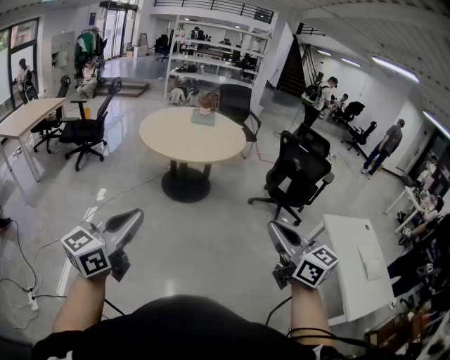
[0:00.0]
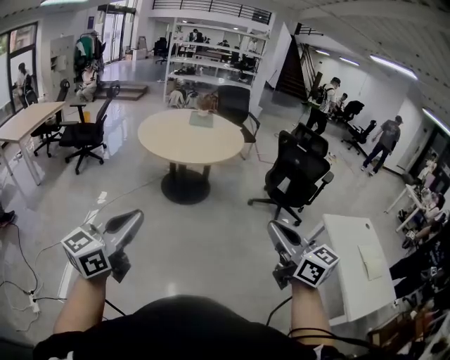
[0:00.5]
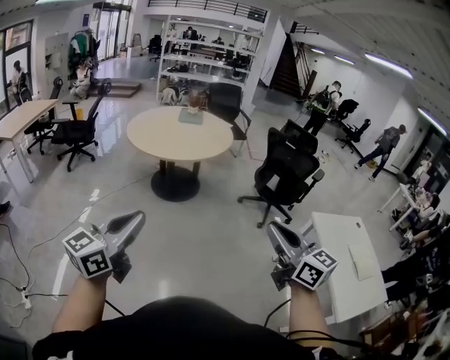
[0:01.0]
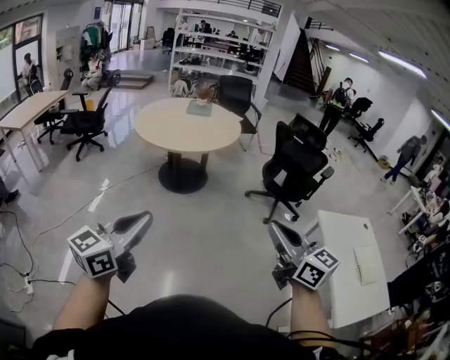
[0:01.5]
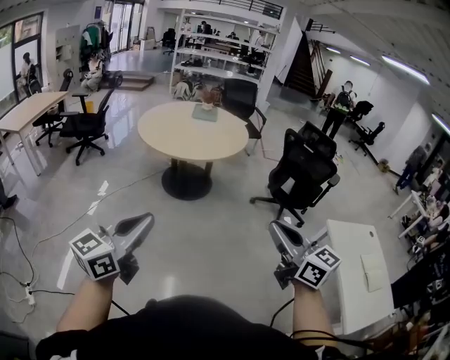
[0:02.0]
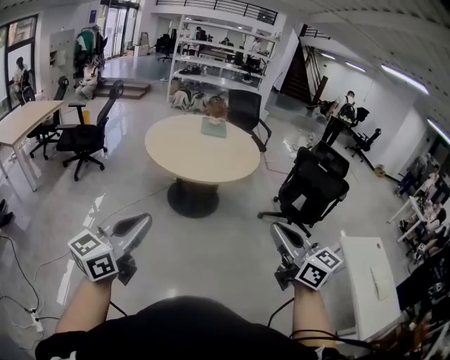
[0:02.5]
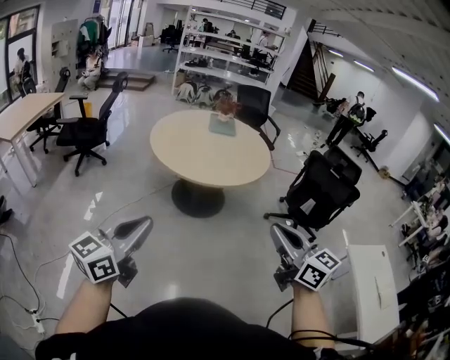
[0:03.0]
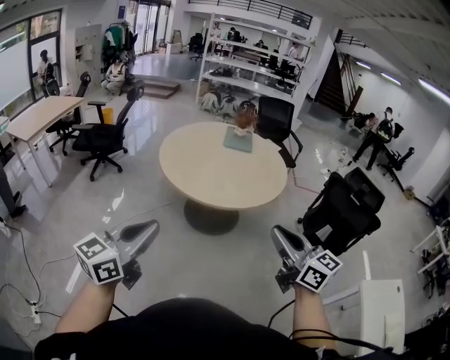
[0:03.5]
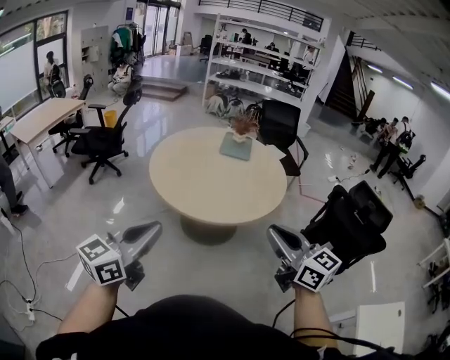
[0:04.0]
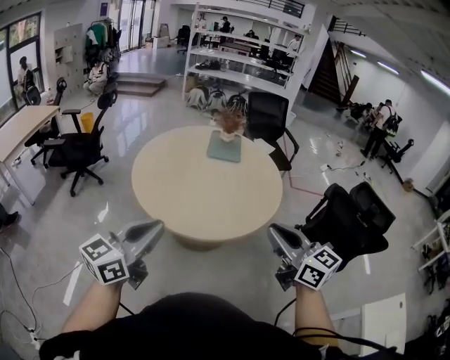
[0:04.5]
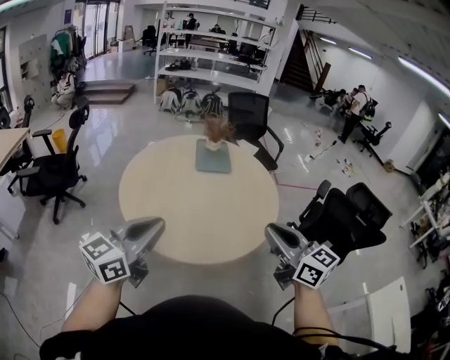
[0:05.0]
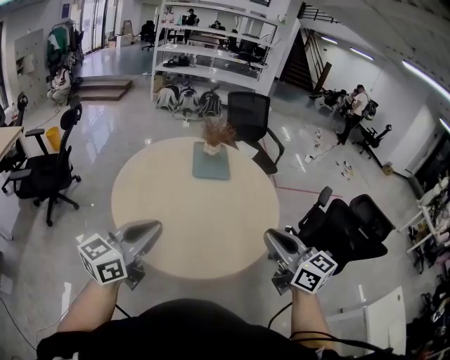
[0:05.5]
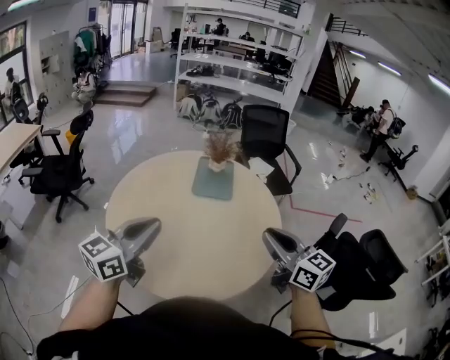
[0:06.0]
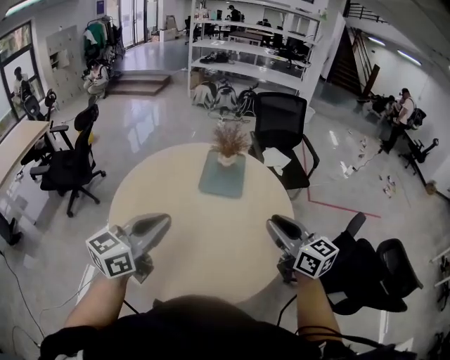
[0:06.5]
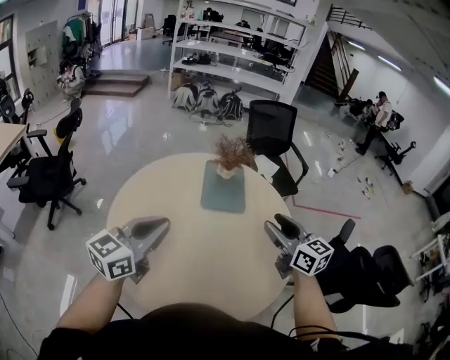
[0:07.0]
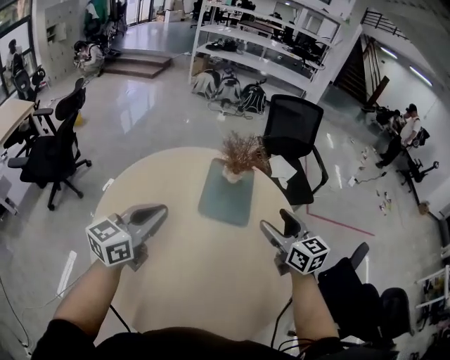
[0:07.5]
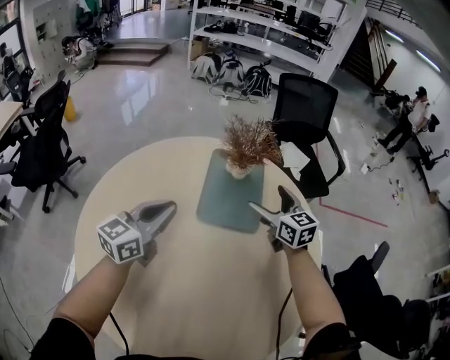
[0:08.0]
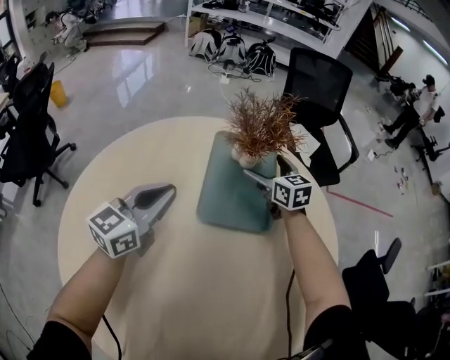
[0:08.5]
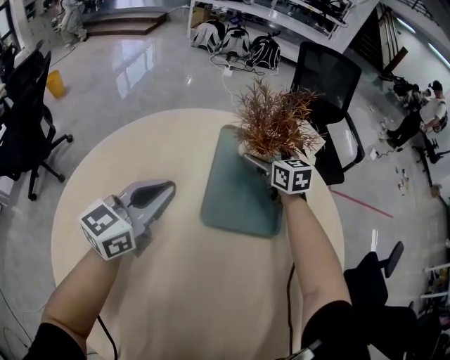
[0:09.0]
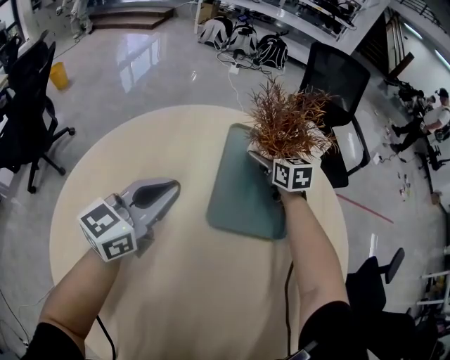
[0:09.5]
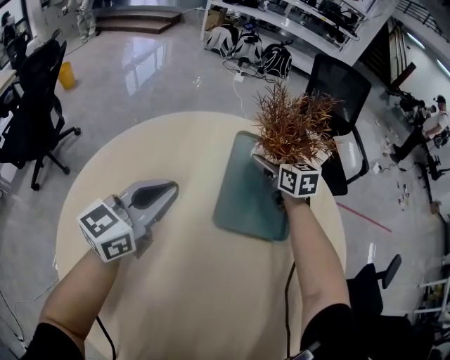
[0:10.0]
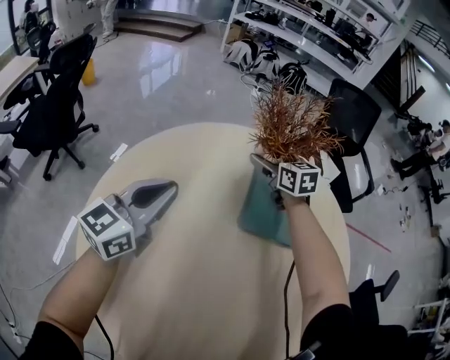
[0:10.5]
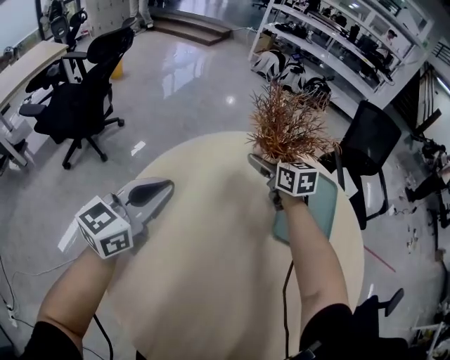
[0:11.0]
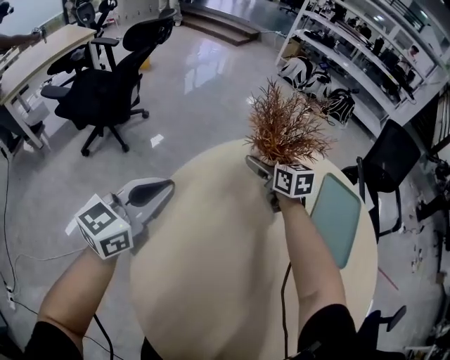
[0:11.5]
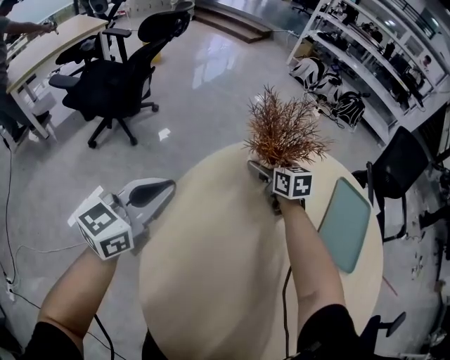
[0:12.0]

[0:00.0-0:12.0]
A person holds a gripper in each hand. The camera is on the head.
0:00.0 to 0:02.0: The right gripper heads forward, covering approximately 5 cm. Meanwhile the left gripper heads to the right, covering roughly 5 cm.
0:02.0 to 0:04.0: Both grippers are carried forward, roughly 40 cm.
0:04.0 to 0:06.0: Both grippers are carried forward, roughly 40 cm.
0:06.0 to 0:08.0: Both grippers travel together forward and downward, some 50 cm. The right gripper opens its fingers.
0:08.0 to 0:10.0: The left gripper goes some 10 cm forward, downward and to the left. The right gripper shifts about 20 cm forward, downward and to the left.
0:10.0 to 0:12.0: The grippers both shift to the left by approximately 35 cm. The left gripper swivels some 20 degrees. The right gripper swivels approximately 20 degrees.

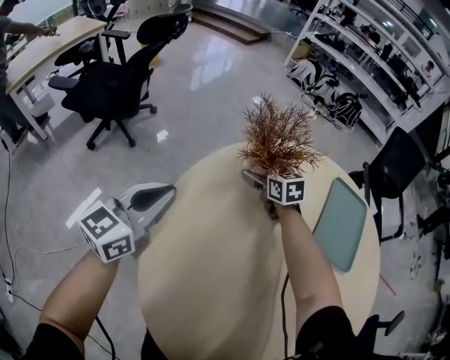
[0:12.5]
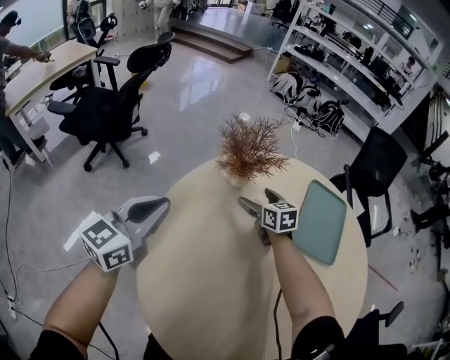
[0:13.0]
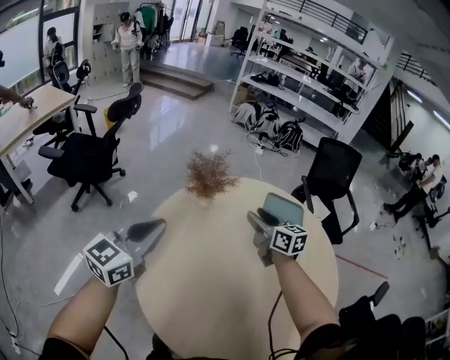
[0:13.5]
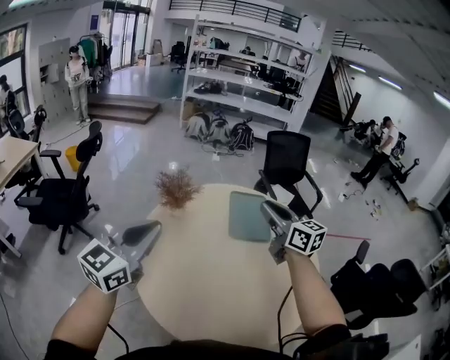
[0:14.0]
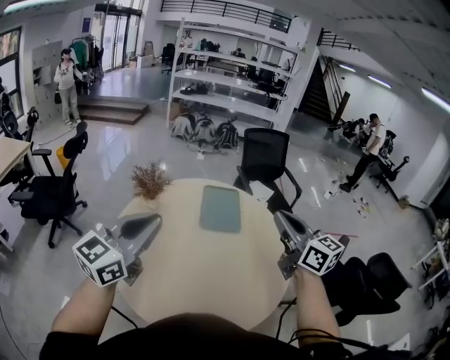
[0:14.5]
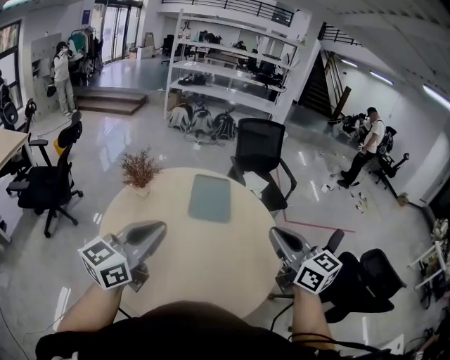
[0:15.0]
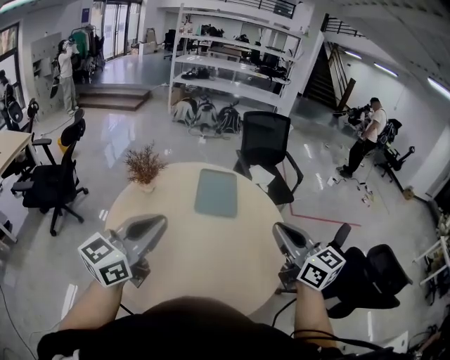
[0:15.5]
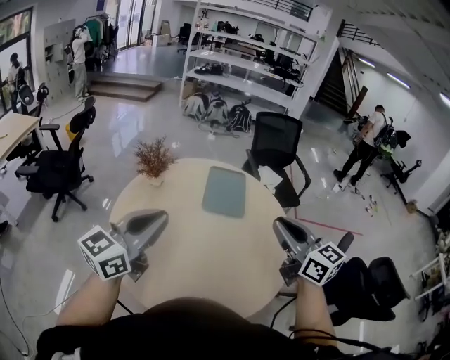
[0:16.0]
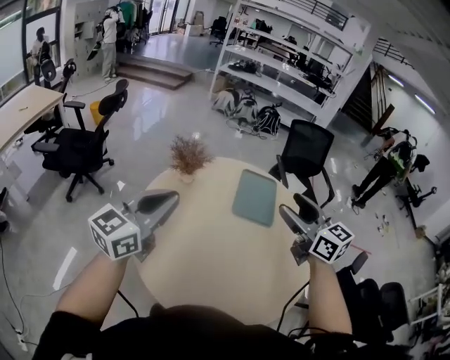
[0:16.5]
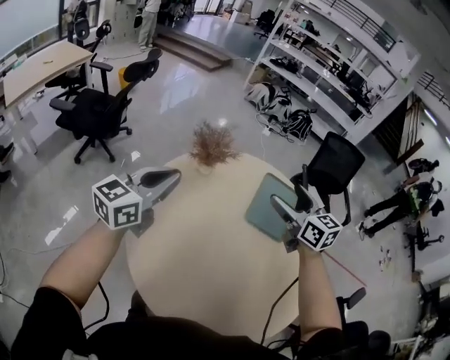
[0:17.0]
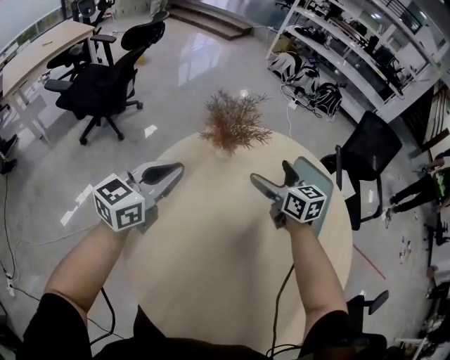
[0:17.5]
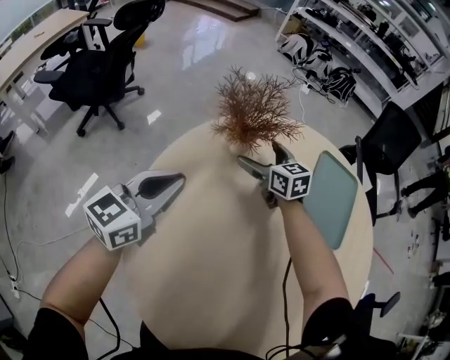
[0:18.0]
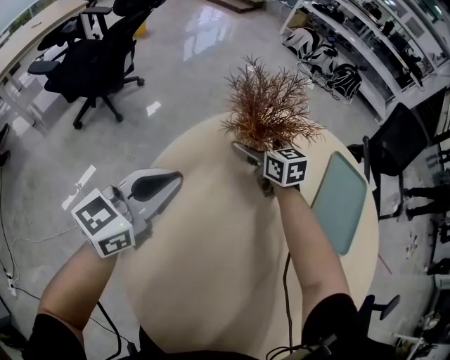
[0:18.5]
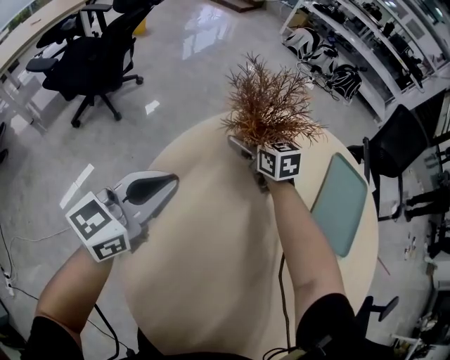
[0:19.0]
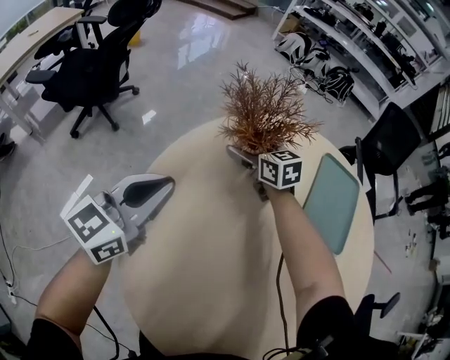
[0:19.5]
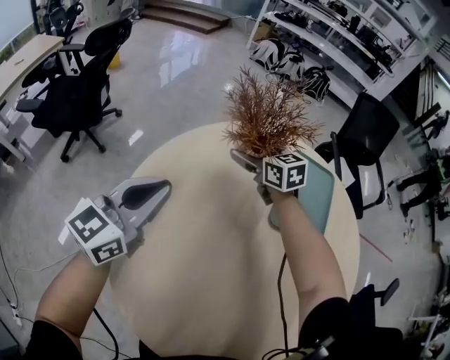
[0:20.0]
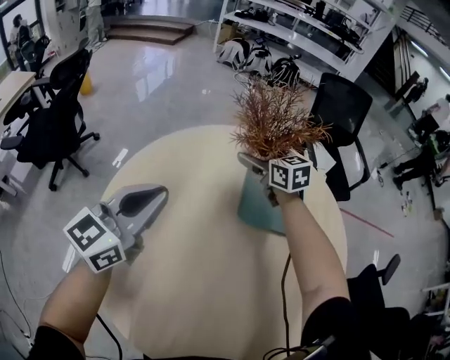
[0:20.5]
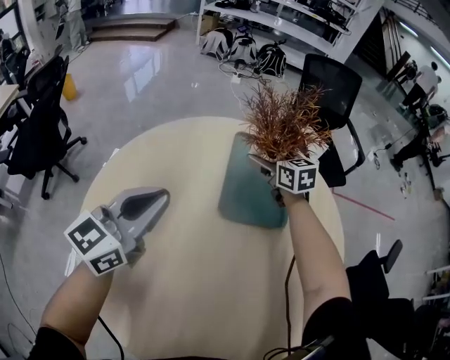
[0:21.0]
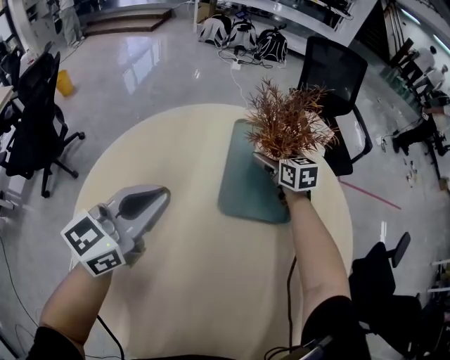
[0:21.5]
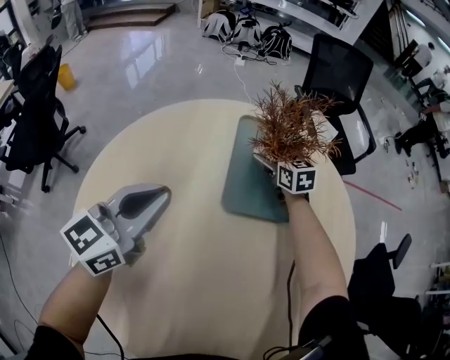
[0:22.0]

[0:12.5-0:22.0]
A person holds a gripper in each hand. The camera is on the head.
0:12.5 to 0:14.5: The left gripper moves upward, backward and to the right, some 50 cm, and changes its angle by roughly 30 degrees. The right gripper moves upward, backward and to the right, roughly 80 cm, tilts its fingers roughly 40 degrees upward, and closes its fingers.
0:14.5 to 0:16.5: The right gripper heads to the left and forward, covering about 10 cm, and opens up; the left gripper moves to the left and downward, about 10 cm.
0:16.5 to 0:18.0: The right gripper is displaced downward, forward and to the left by about 60 cm, rotates about 20 degrees, and opens up, while the left gripper is displaced downward and forward by about 40 cm.
0:18.0 to 0:20.0: The left gripper heads upward, covering roughly 5 cm; the right gripper is displaced upward and to the right by about 10 cm.
0:20.0 to 0:22.0: The right gripper goes roughly 30 cm to the right, and swivels about 20 degrees. Meanwhile the left gripper heads to the right, covering about 20 cm.

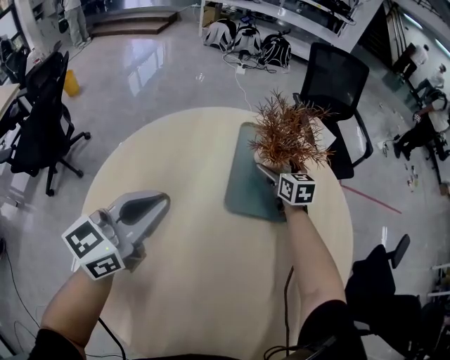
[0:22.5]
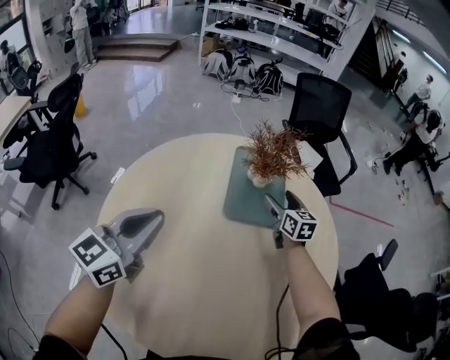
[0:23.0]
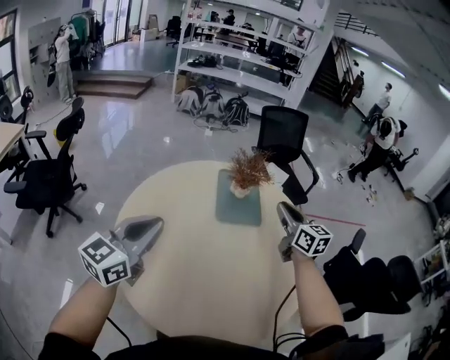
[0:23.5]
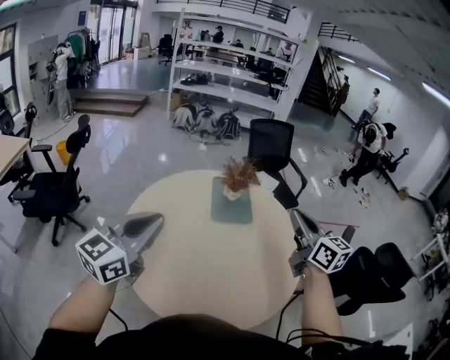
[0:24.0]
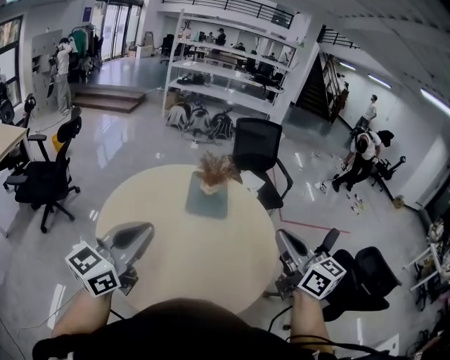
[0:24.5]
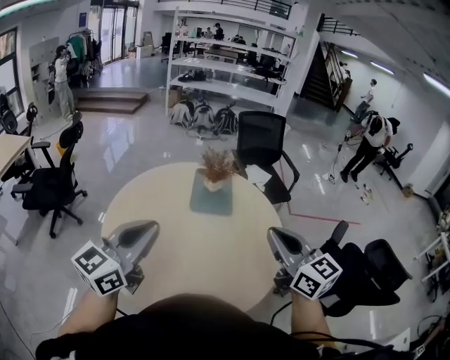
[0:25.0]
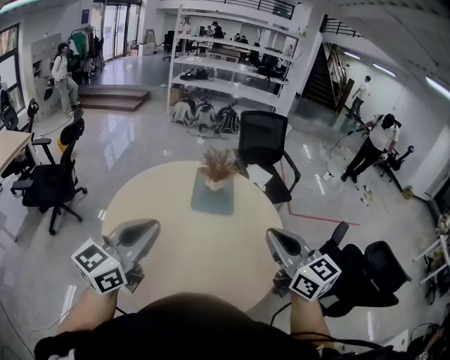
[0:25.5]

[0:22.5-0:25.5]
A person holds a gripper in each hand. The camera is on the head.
0:22.5 to 0:24.0: The right gripper goes approximately 60 cm upward and backward, swivels some 30 degrees, and closes up, while the left gripper shifts roughly 40 cm backward and upward.
0:24.0 to 0:25.5: The left gripper goes some 10 cm to the right. Meanwhile the right gripper shifts about 10 cm backward.

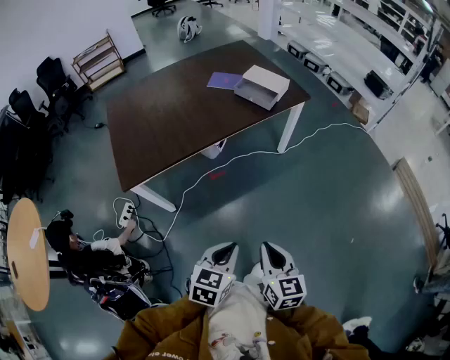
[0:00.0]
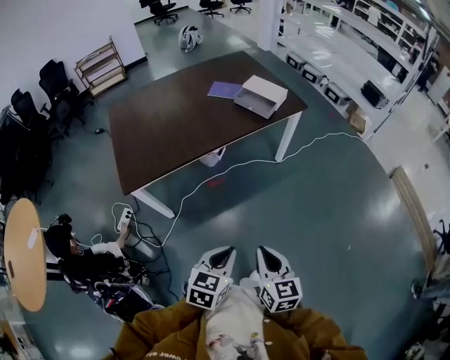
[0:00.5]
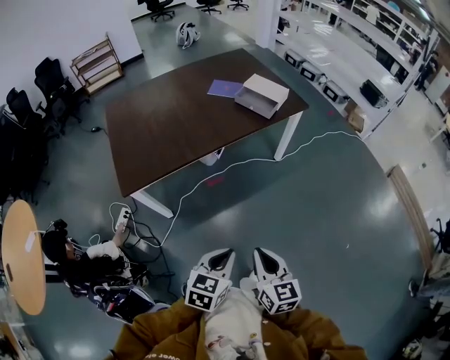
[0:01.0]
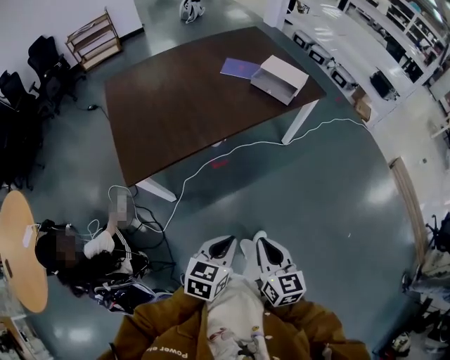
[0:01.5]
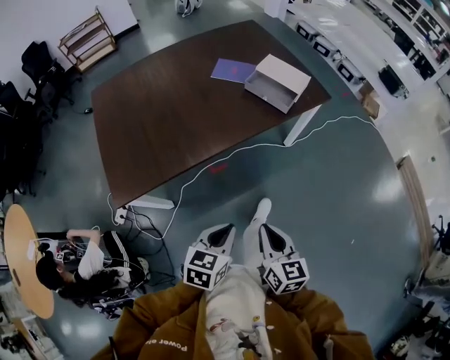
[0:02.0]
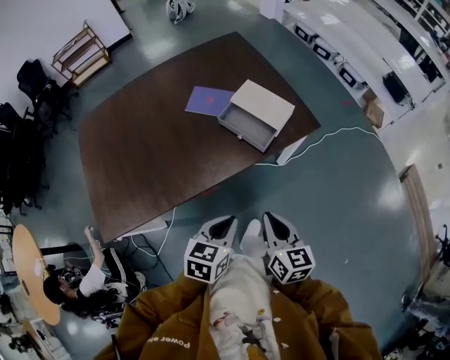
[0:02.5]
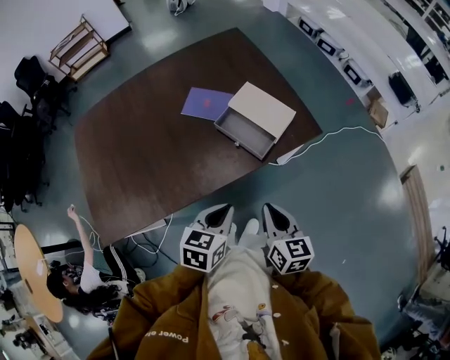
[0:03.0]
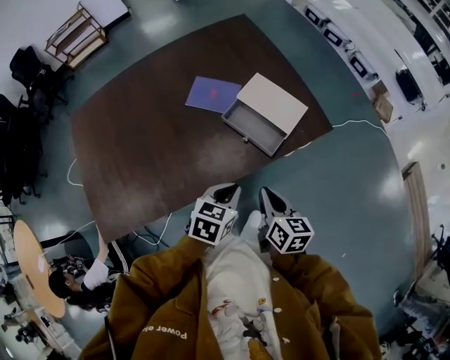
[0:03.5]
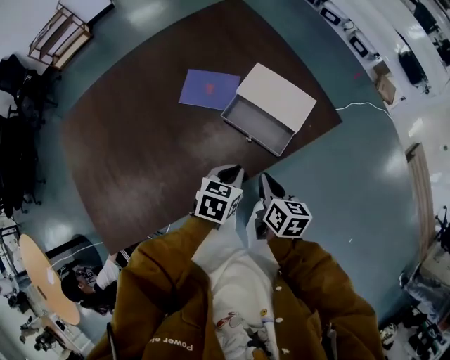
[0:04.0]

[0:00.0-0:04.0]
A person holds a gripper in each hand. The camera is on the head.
0:00.0 to 0:02.0: Both grippers move forward and to the left, roughly 20 cm.
0:02.0 to 0:04.0: The pair of grippers is taken forward, some 50 cm. The right gripper turns by approximately 20 degrees.
